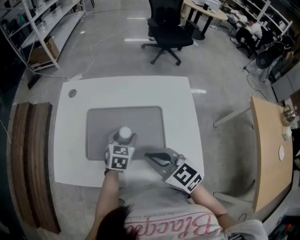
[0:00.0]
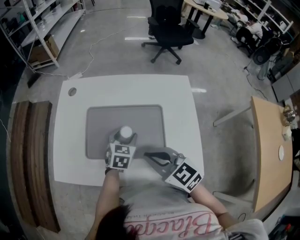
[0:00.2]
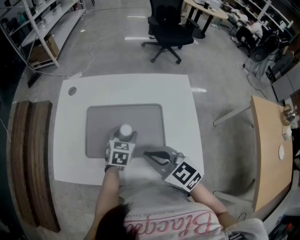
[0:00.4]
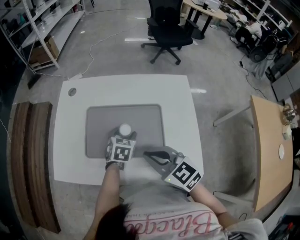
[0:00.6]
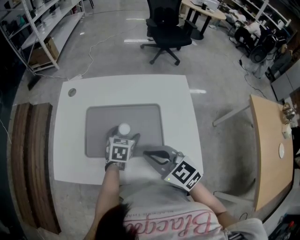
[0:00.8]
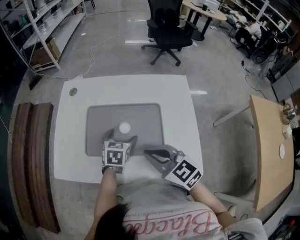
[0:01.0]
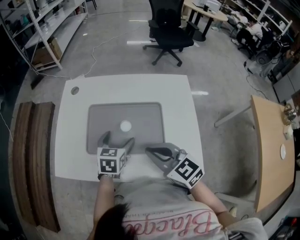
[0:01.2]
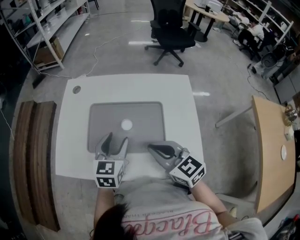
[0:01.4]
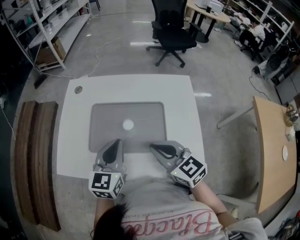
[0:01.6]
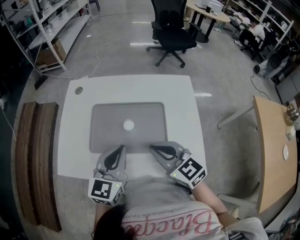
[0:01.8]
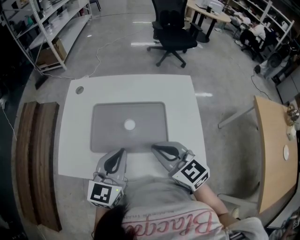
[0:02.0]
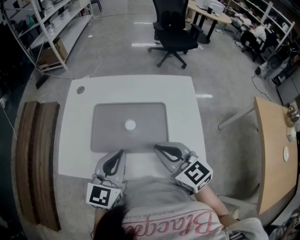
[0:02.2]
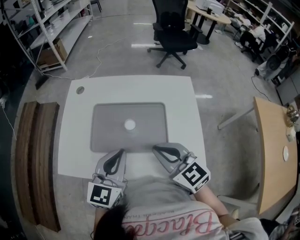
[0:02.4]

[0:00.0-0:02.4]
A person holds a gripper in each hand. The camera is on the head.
0.0 to 1.2 s: The left gripper changes place by about 5 cm, and opens its fingers.
1.2 to 2.4 s: The left gripper moves upward and backward, approximately 15 cm, rotates some 30 degrees, and closes up.

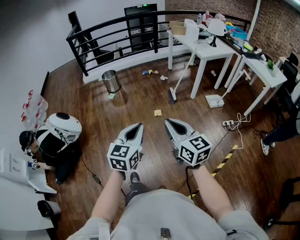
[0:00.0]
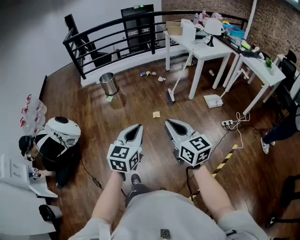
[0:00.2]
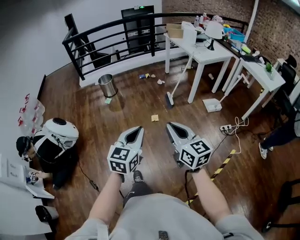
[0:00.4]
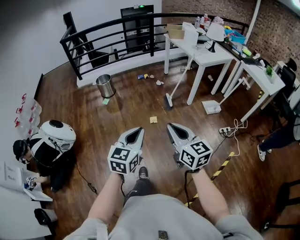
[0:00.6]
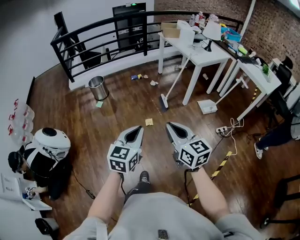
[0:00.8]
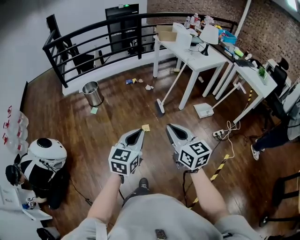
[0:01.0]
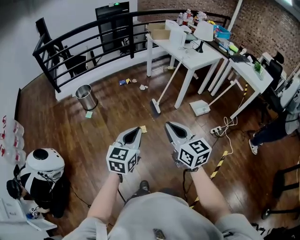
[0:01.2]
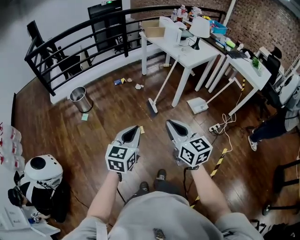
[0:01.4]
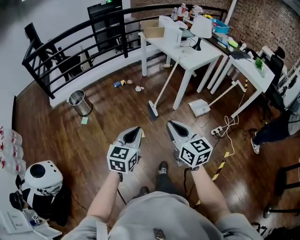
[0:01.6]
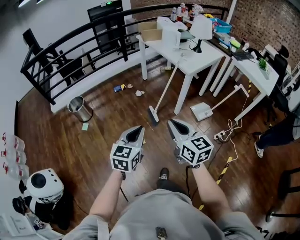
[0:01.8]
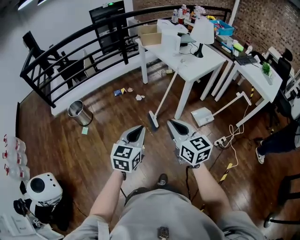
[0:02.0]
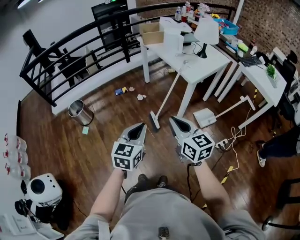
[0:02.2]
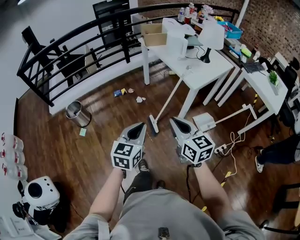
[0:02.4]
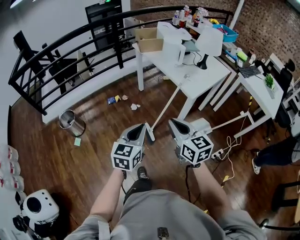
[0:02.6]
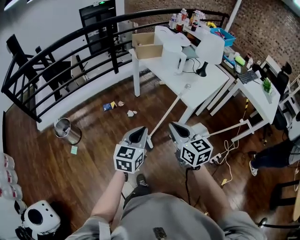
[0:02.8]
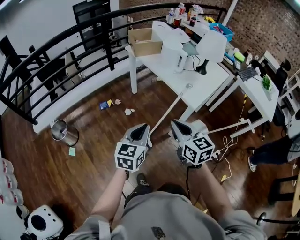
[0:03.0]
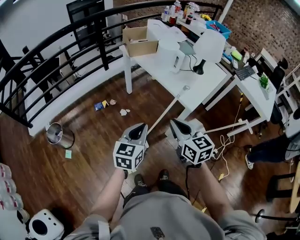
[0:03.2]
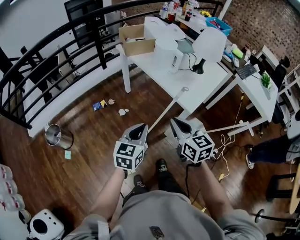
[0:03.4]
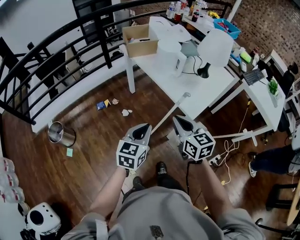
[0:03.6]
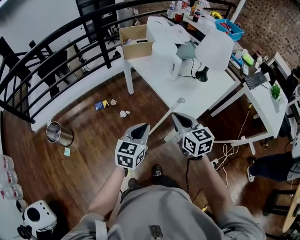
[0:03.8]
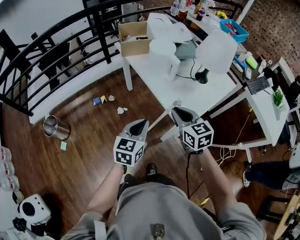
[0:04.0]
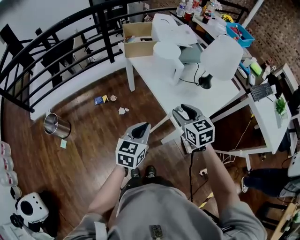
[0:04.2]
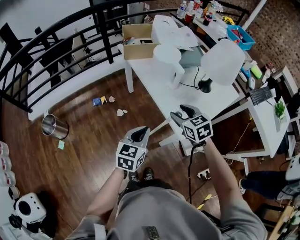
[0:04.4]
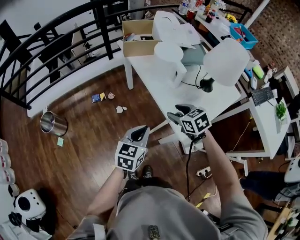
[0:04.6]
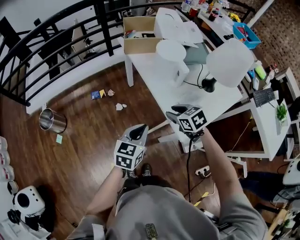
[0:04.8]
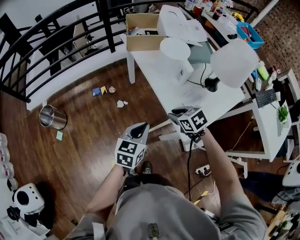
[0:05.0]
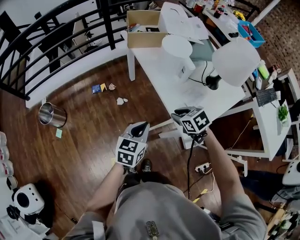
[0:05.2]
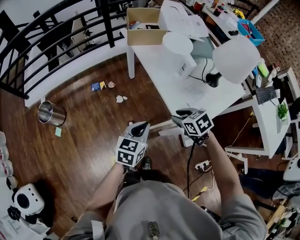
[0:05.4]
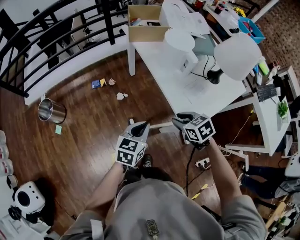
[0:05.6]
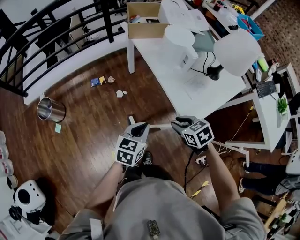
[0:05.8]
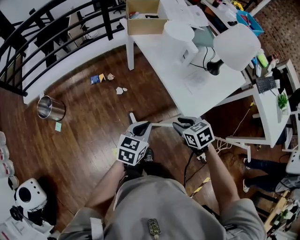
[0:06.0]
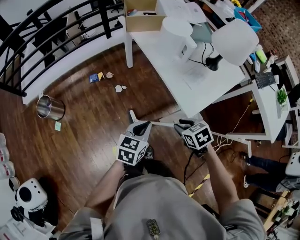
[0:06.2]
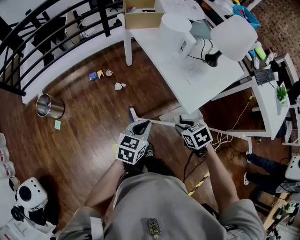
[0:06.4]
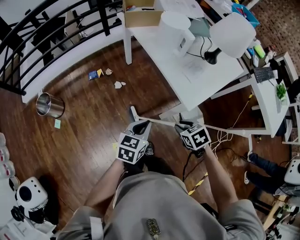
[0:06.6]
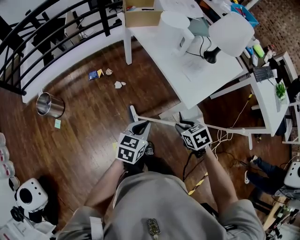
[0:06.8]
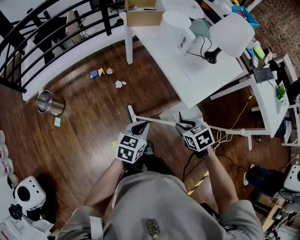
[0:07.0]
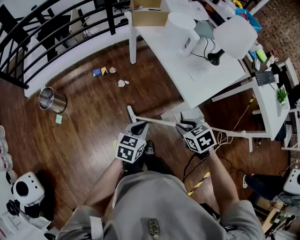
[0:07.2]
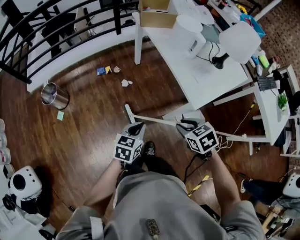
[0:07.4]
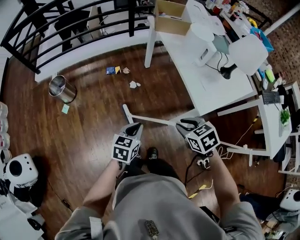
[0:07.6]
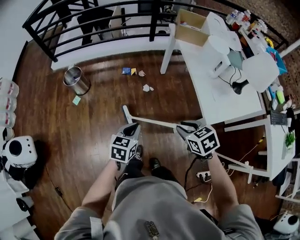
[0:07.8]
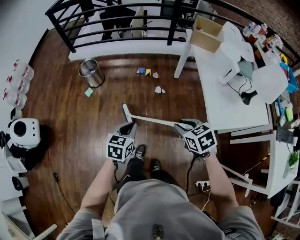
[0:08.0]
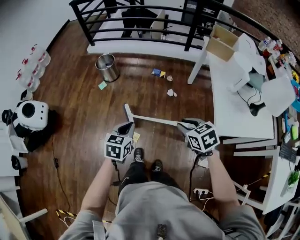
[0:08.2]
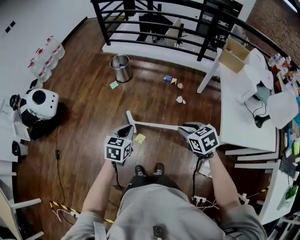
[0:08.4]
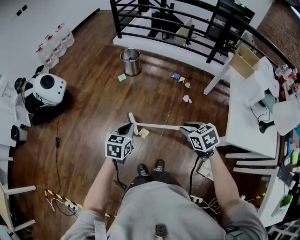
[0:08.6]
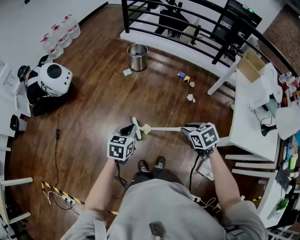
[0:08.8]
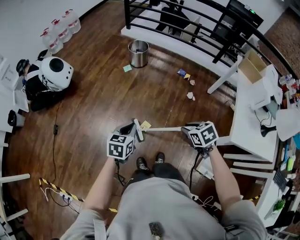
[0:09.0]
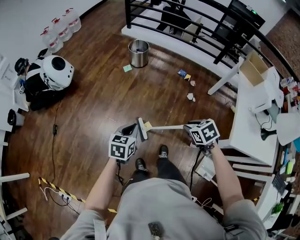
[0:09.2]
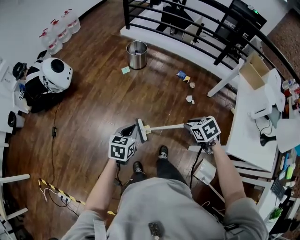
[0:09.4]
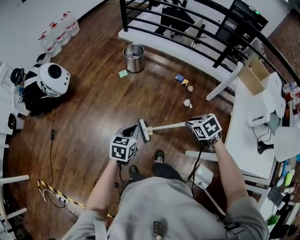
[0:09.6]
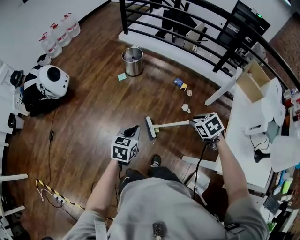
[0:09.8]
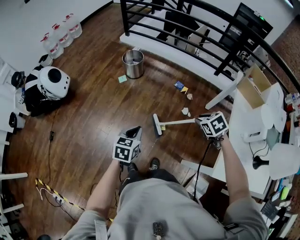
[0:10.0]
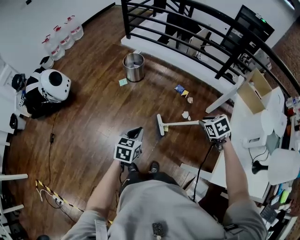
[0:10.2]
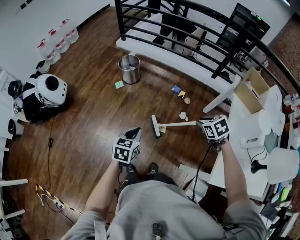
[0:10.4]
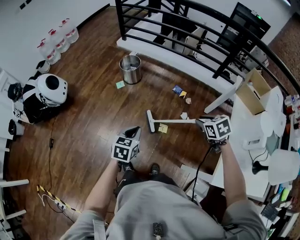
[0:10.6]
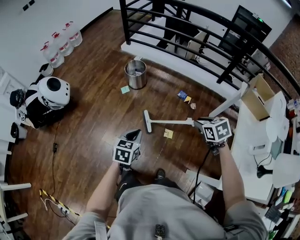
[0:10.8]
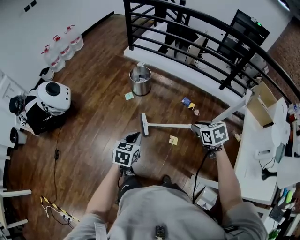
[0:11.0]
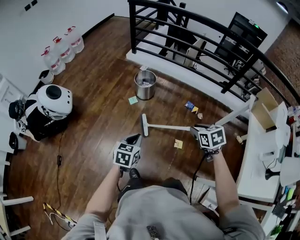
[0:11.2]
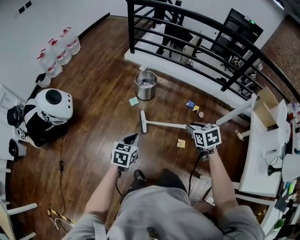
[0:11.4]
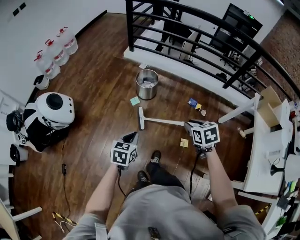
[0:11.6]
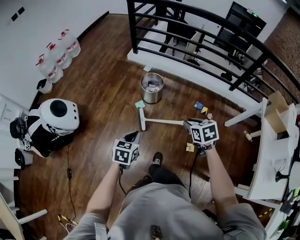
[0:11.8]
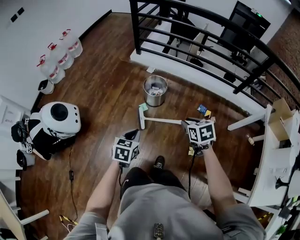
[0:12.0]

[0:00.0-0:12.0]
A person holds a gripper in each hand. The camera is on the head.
0.0 to 1.6 s: Both grippers travel together forward, approximately 40 cm.
1.6 to 3.0 s: The two grippers travel together, forward, roughly 40 cm.
3.0 to 4.4 s: The grippers both shift forward and to the right by roughly 30 cm. The right gripper changes its angle by approximately 30 degrees, and opens up.
4.4 to 6.0 s: The right gripper is displaced backward and downward by roughly 15 cm, turns by some 20 degrees, and closes up, while the left gripper is displaced downward by about 5 cm.
6.0 to 7.6 s: The right gripper shifts roughly 10 cm backward and to the left, while the left gripper is displaced to the left and backward by roughly 15 cm.
7.6 to 9.0 s: The left gripper ends up approximately 35 cm from where it was, and rotates approximately 50 degrees; the right gripper changes place by some 20 cm, and changes its angle by some 40 degrees.
9.0 to 10.4 s: The two grippers go roughly 30 cm to the right and forward.
10.4 to 12.0 s: Both grippers are carried to the left and forward, some 50 cm.

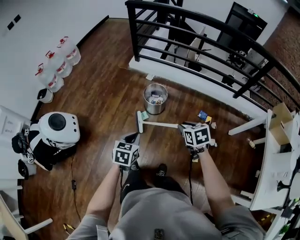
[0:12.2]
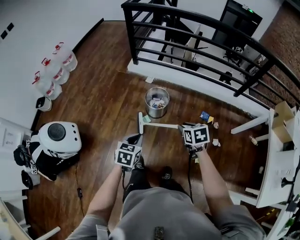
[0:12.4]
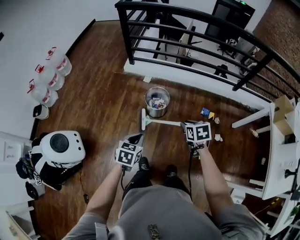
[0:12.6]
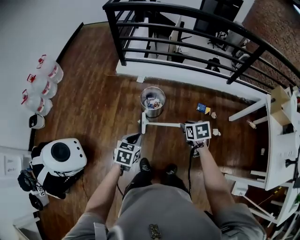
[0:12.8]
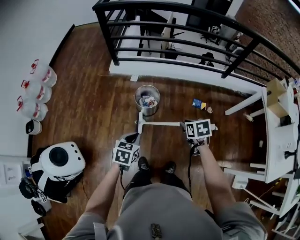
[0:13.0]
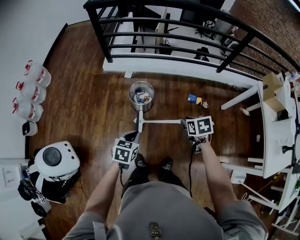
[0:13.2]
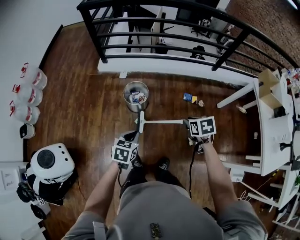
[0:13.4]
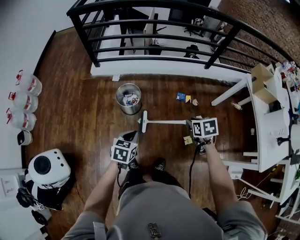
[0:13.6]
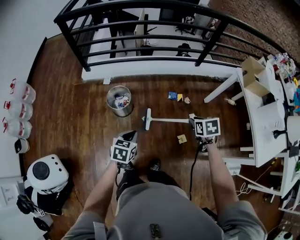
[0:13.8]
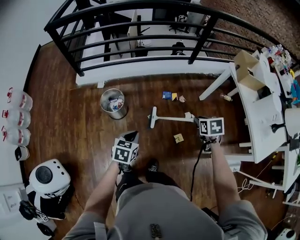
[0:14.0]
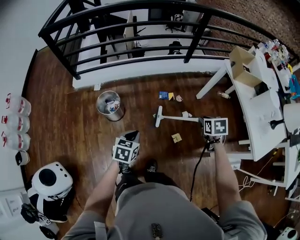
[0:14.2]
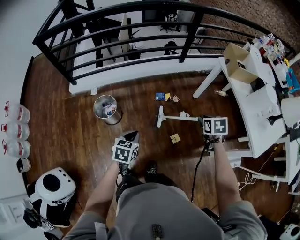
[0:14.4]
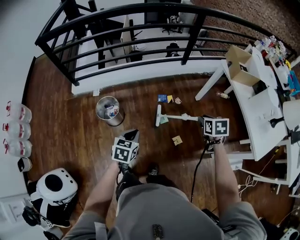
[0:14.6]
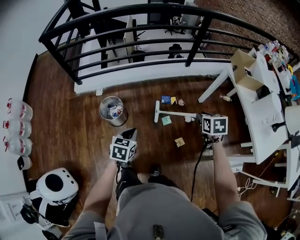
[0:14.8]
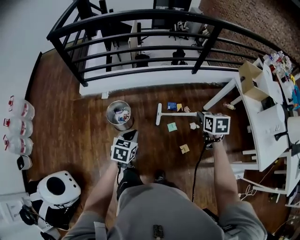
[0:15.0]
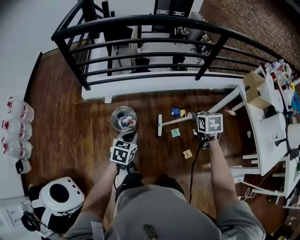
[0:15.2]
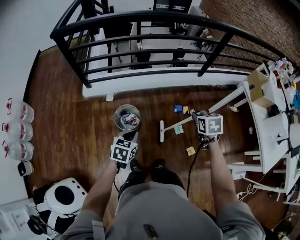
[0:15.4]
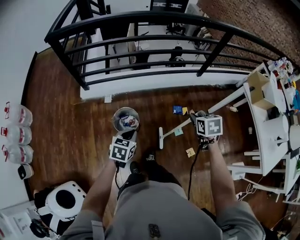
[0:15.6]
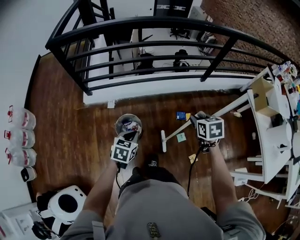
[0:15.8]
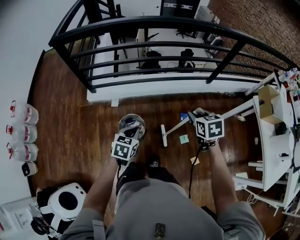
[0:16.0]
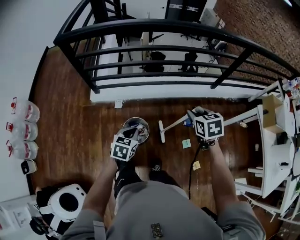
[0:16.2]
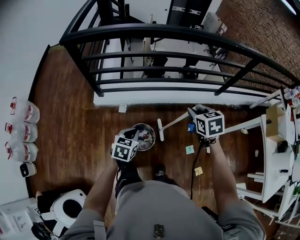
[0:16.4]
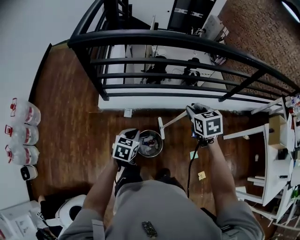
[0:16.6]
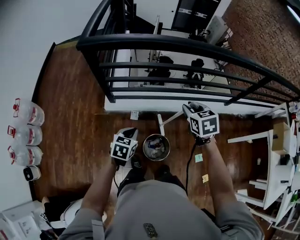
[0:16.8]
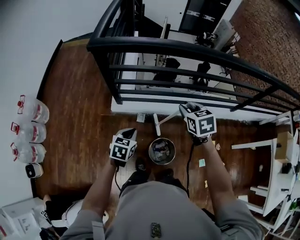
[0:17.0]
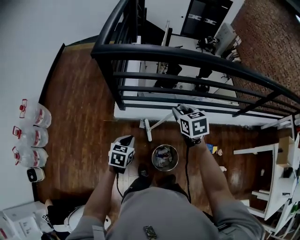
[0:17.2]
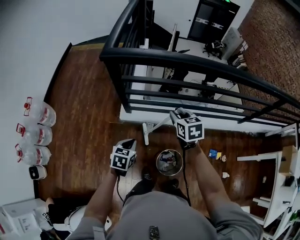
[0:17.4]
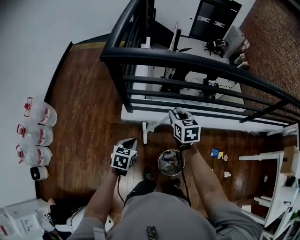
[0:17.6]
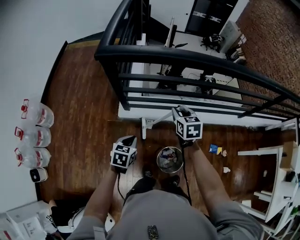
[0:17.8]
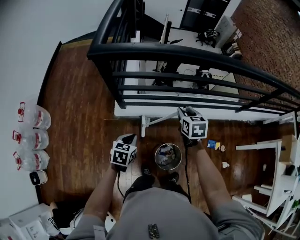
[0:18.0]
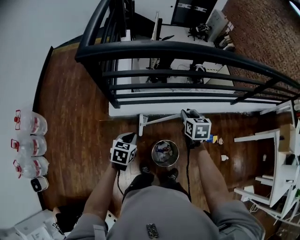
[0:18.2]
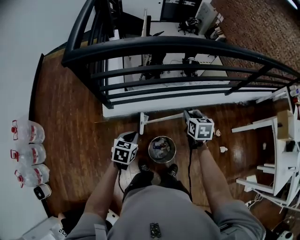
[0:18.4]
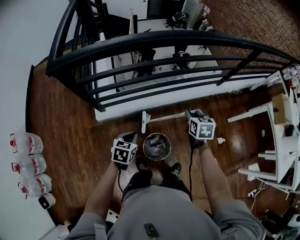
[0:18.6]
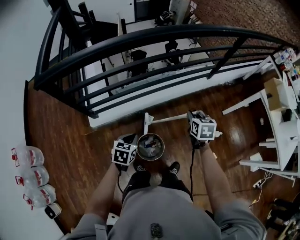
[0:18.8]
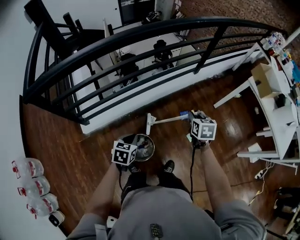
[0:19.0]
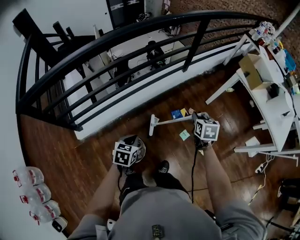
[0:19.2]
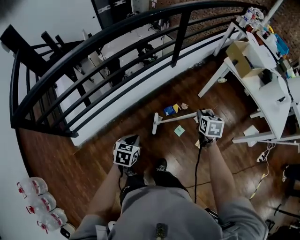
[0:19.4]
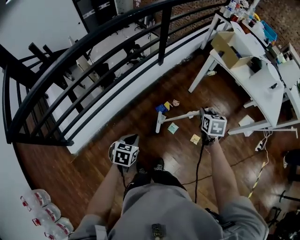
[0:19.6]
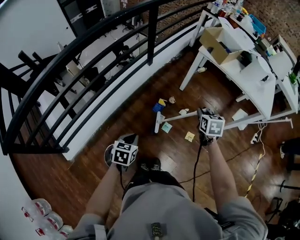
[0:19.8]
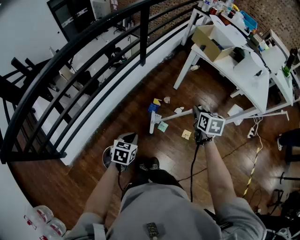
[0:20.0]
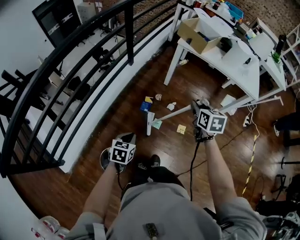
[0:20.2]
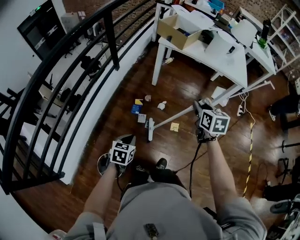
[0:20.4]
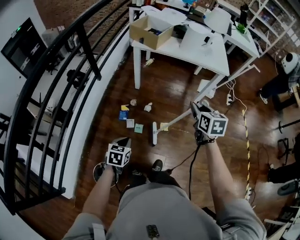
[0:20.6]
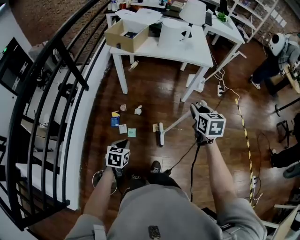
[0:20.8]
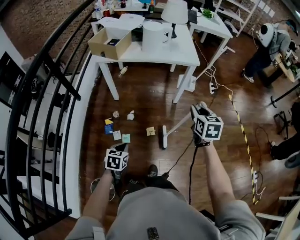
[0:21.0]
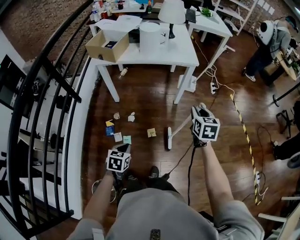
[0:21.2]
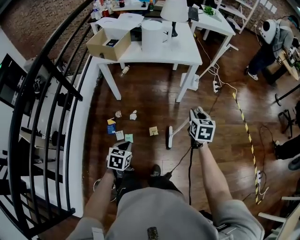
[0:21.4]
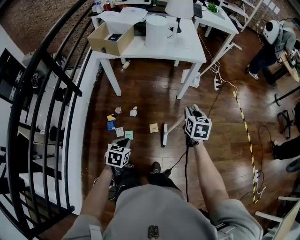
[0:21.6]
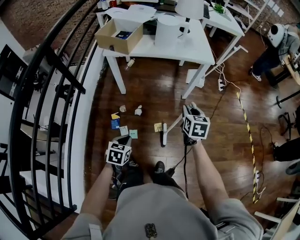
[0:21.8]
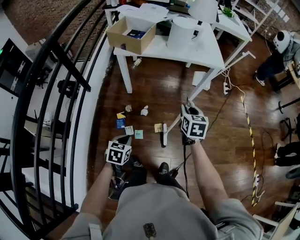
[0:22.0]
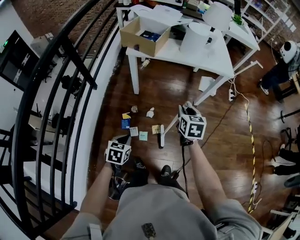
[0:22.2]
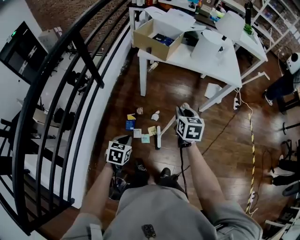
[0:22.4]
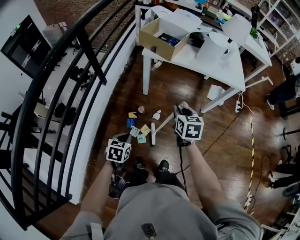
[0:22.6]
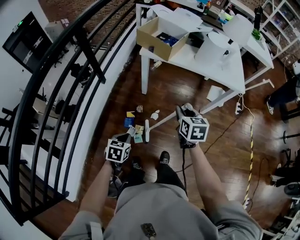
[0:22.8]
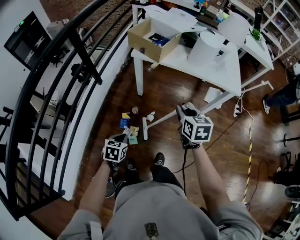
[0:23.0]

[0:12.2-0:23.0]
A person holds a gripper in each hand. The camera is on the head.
12.2 to 13.8 s: The left gripper ends up approximately 15 cm from where it was, and turns by some 30 degrees. Meanwhile the right gripper changes place by roughly 20 cm, and turns by about 40 degrees.
13.8 to 15.2 s: The right gripper goes about 15 cm forward, to the left and upward, while the left gripper goes some 15 cm forward and to the left.
15.2 to 16.8 s: The pair of grippers is taken to the left and forward, roughly 50 cm. The right gripper turns by about 20 degrees.
16.8 to 18.4 s: The left gripper travels forward by roughly 5 cm, and reaches roughly 15 cm to the left, then returns. The right gripper heads downward, covering roughly 10 cm, travels to the left and back again, roughly 20 cm each way, and rotates approximately 20 degrees.
18.4 to 20.0 s: The pair of grippers is taken approximately 60 cm. The left gripper rotates approximately 40 degrees. Meanwhile the right gripper changes its angle by roughly 50 degrees.
20.0 to 21.4 s: The right gripper moves some 10 cm upward and comes back, and changes its angle by roughly 40 degrees; the left gripper shifts by roughly 30 cm, and turns by about 30 degrees.
21.4 to 23.0 s: The left gripper travels to the left and forward by some 20 cm. The right gripper shifts approximately 30 cm to the left and forward, and swivels approximately 30 degrees.
